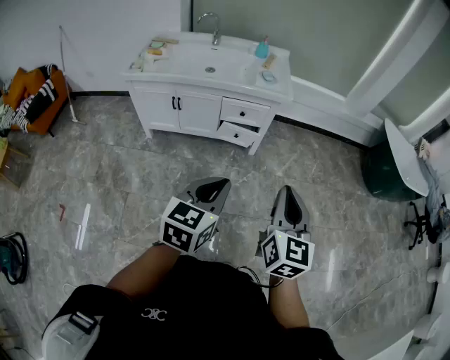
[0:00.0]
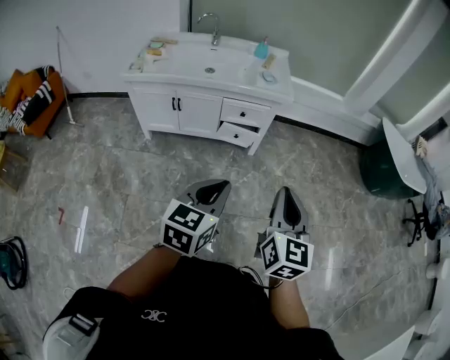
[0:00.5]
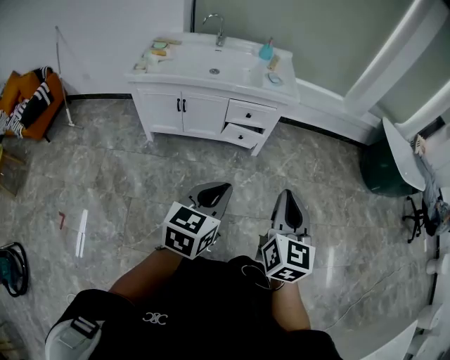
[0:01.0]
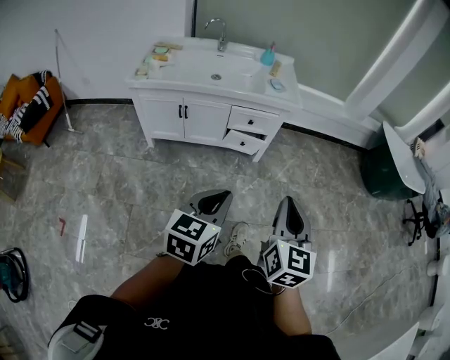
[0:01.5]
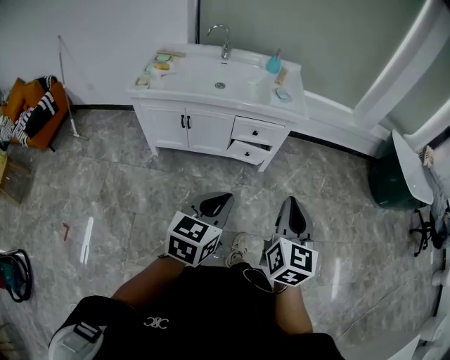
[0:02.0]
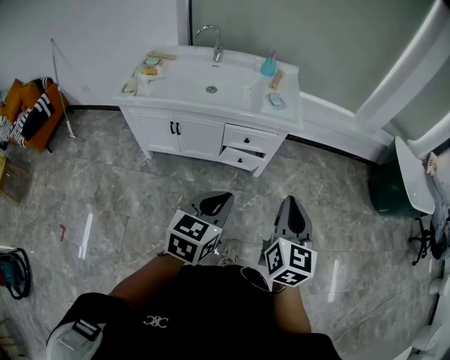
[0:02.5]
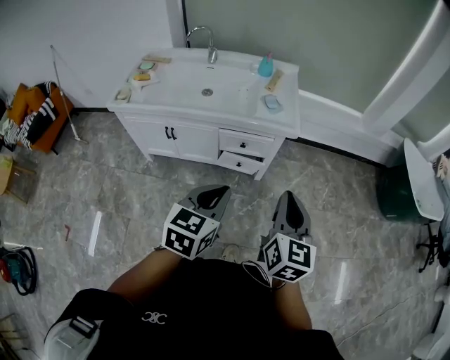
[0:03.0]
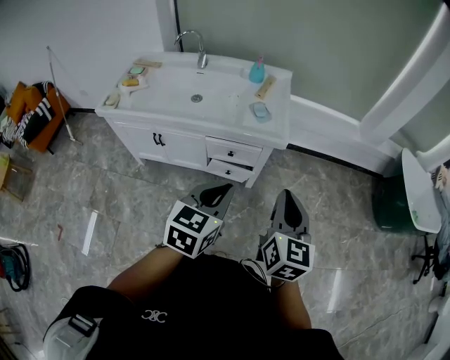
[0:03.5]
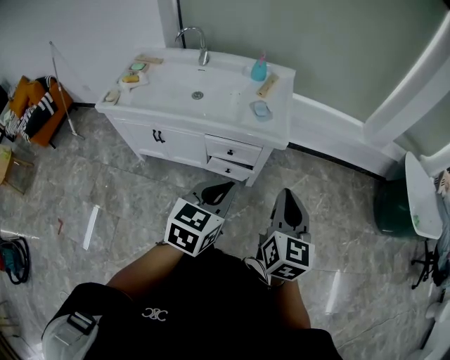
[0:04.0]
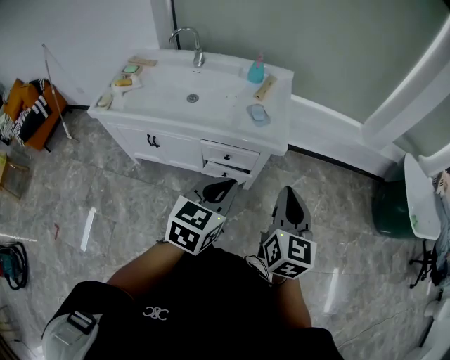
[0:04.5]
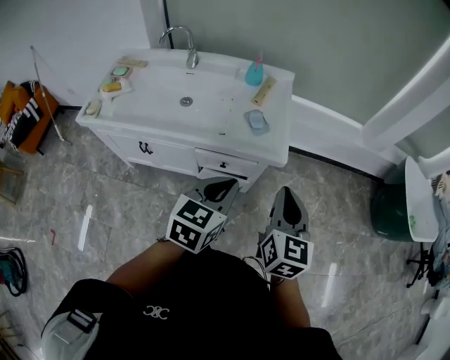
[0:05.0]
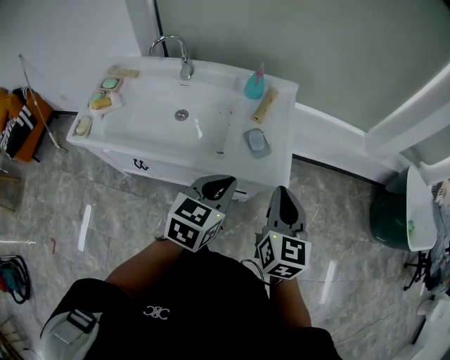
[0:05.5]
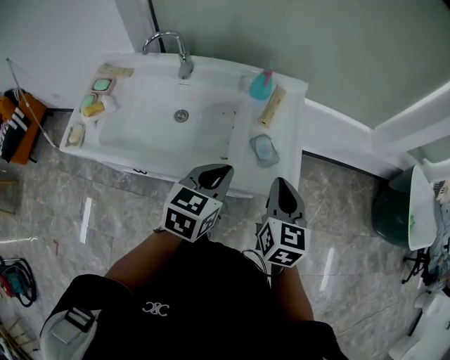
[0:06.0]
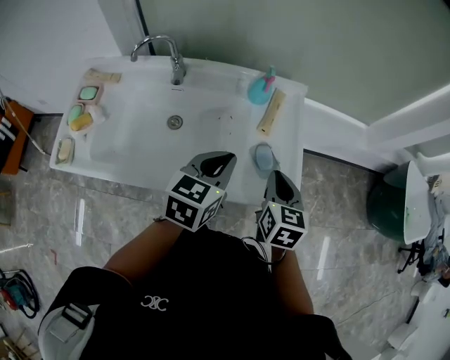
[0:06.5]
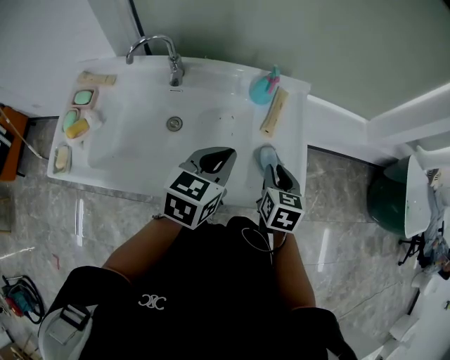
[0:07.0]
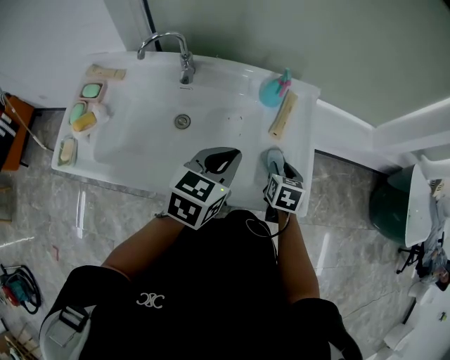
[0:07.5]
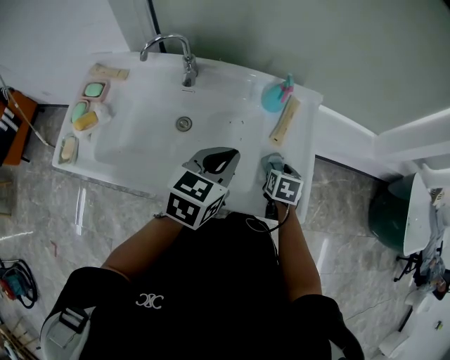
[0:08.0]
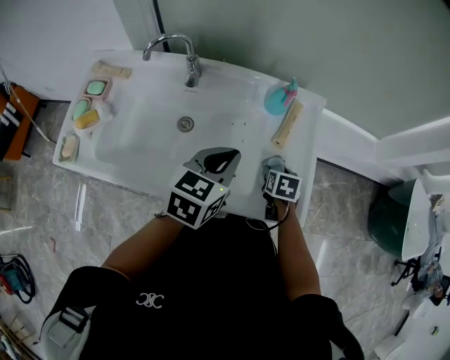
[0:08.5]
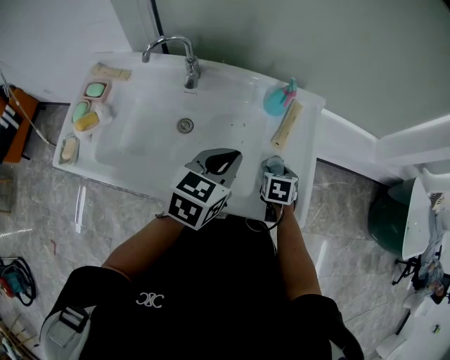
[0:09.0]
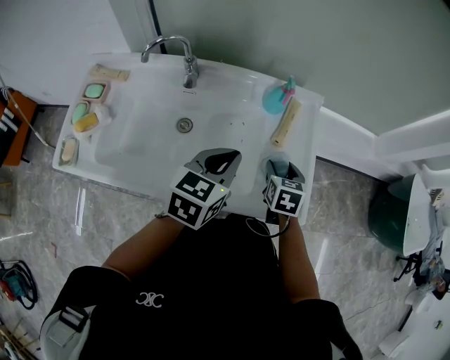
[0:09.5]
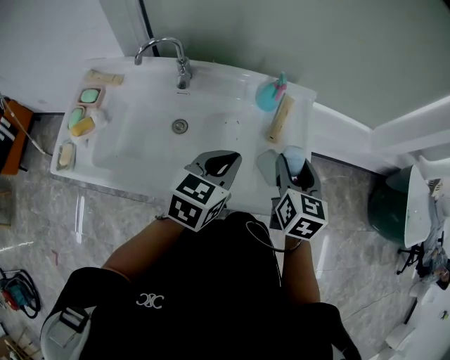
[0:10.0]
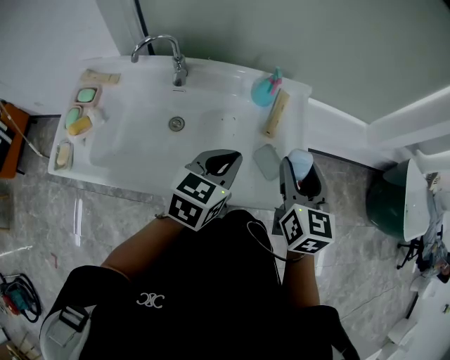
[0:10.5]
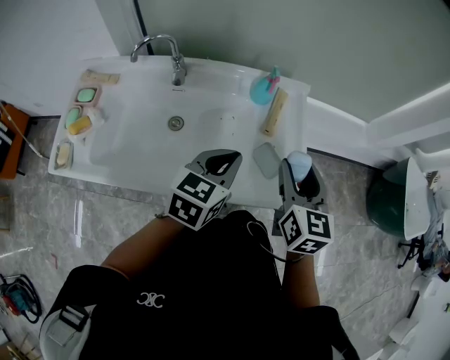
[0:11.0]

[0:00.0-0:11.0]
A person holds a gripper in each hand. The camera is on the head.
0:00.0 to 0:02.0: The right gripper moves to the left and forward, some 10 cm. Meanwhile the left gripper heads to the left, covering roughly 10 cm.
0:02.0 to 0:03.5: The right gripper moves forward, roughly 25 cm. Meanwhile the left gripper moves forward and to the right, approximately 30 cm.
0:03.5 to 0:05.5: The grippers both shift forward by about 25 cm.
0:05.5 to 0:07.5: The left gripper heads forward and to the left, covering approximately 20 cm; the right gripper travels forward, downward and to the left by roughly 30 cm, angles its fingers downward, by some 30 degrees, and opens its fingers.
0:07.5 to 0:09.0: The right gripper opens.
0:09.0 to 0:11.0: The right gripper goes roughly 25 cm upward, and tips its fingers upward by some 40 degrees.

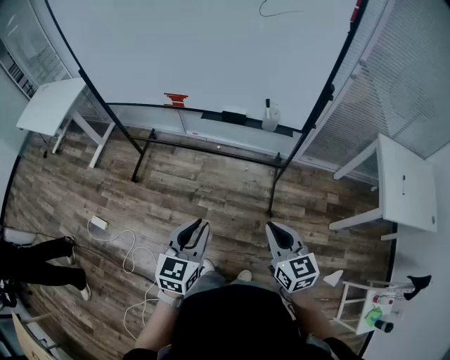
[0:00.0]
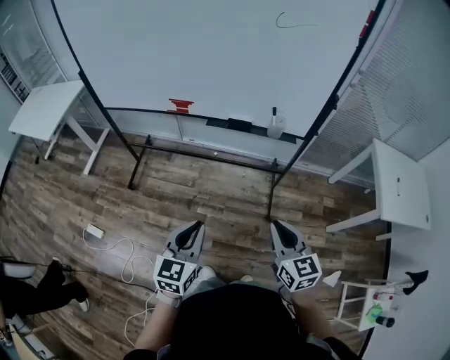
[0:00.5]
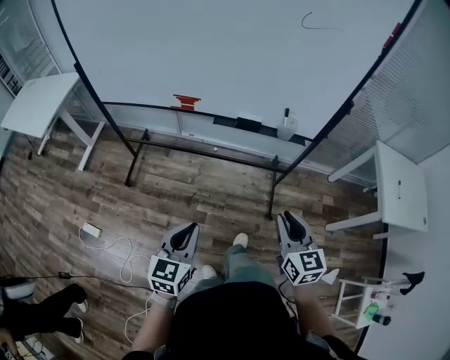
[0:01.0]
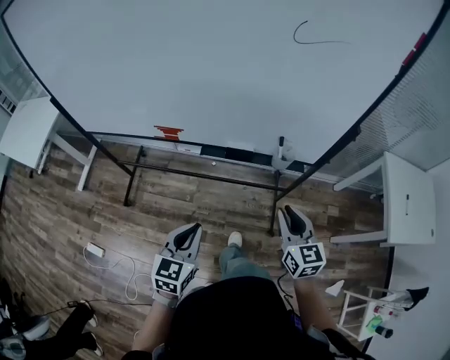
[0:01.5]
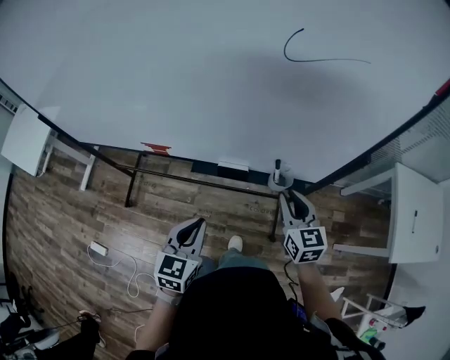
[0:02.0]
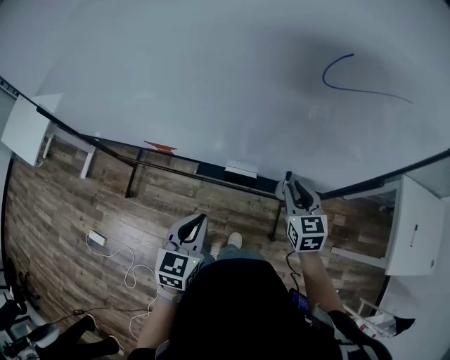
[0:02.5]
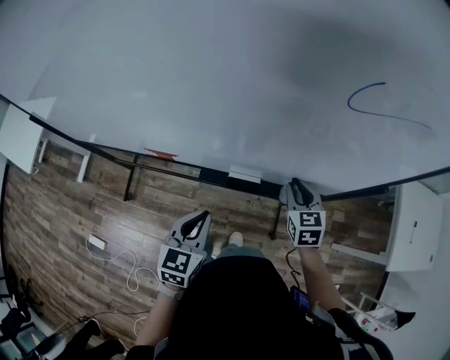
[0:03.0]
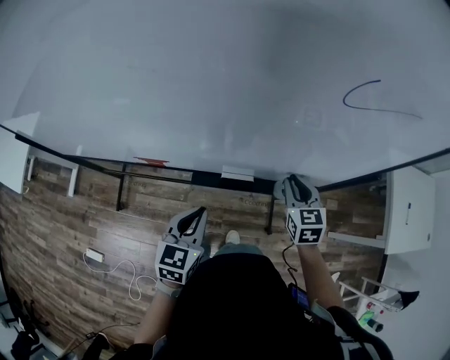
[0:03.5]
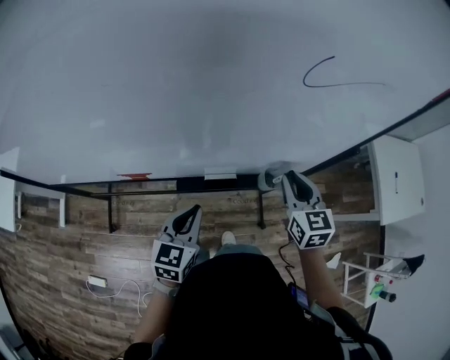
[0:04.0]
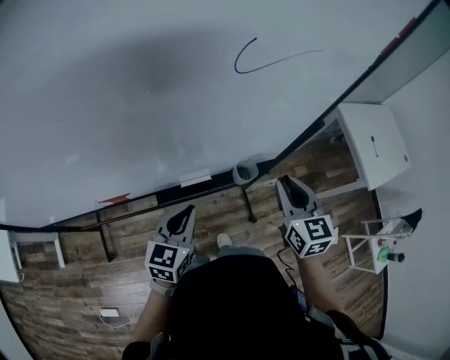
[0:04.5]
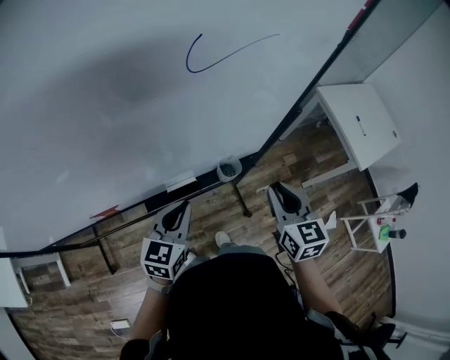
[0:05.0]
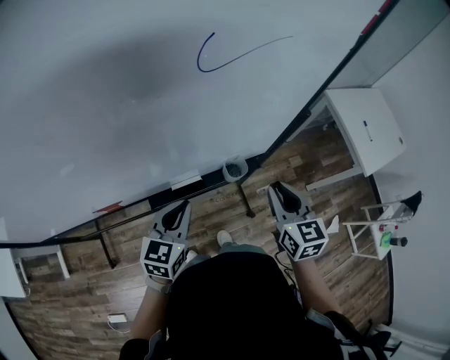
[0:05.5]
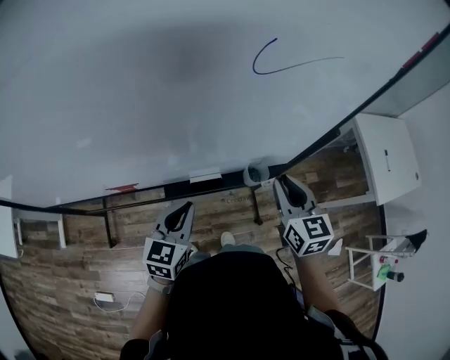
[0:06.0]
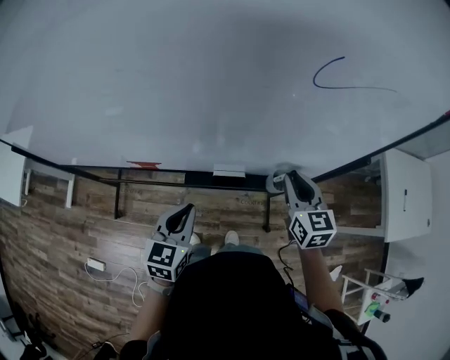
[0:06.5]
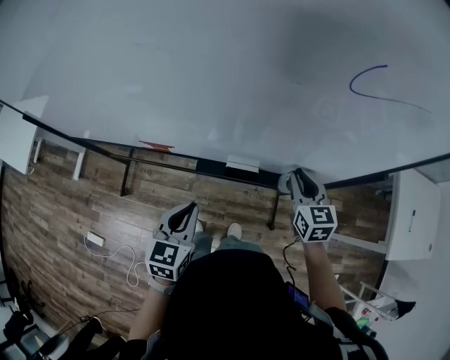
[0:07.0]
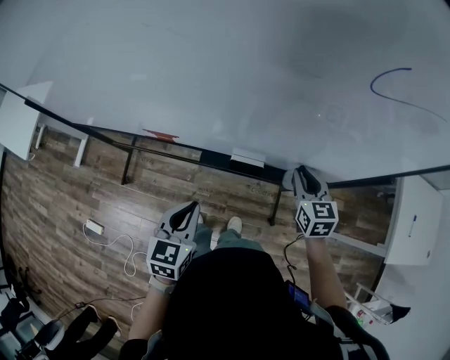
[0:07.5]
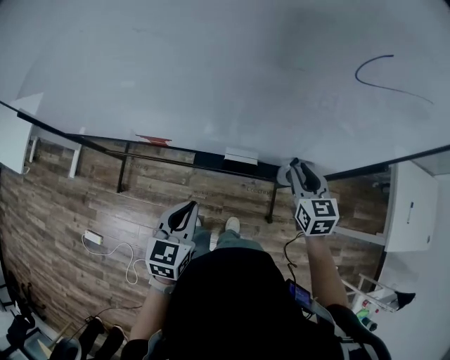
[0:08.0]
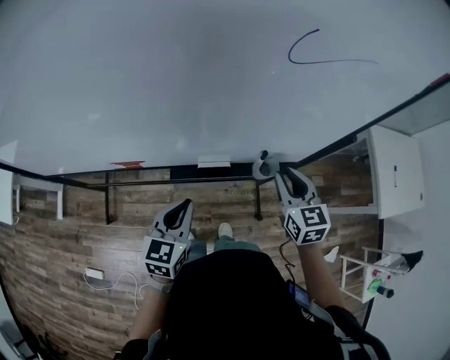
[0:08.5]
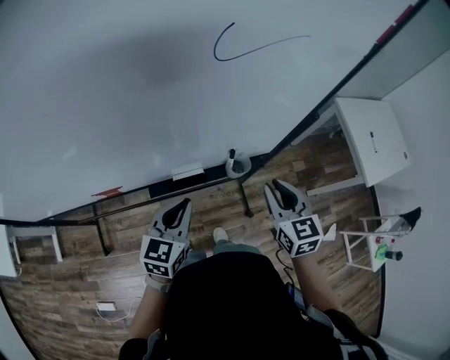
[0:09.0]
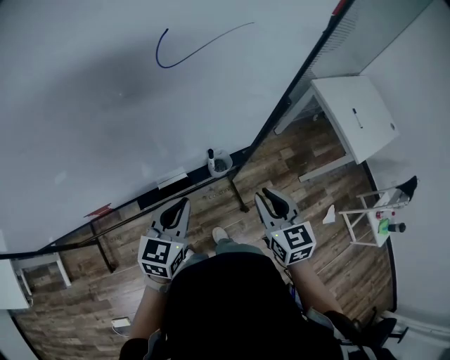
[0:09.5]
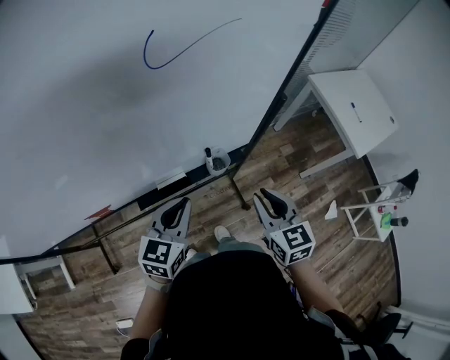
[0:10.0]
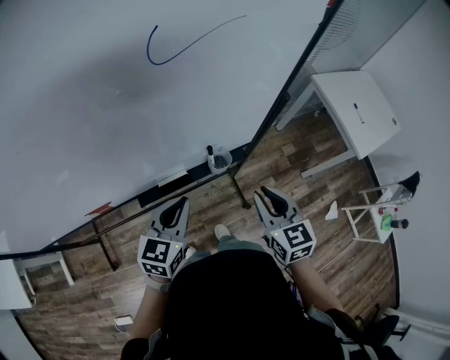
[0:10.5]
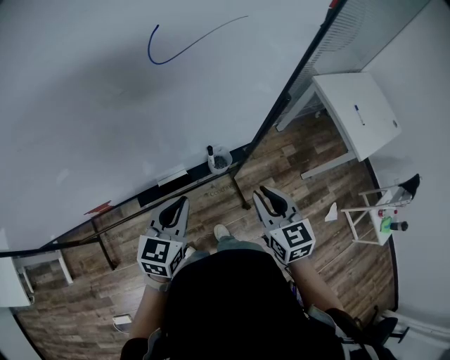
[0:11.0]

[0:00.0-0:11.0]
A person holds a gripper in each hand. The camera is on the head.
0:00.0 to 0:02.0: The grippers both shift forward by approximately 35 cm.
0:02.0 to 0:03.5: The grippers both shift forward by roughly 10 cm.
0:03.5 to 0:05.5: The left gripper is displaced to the right and forward by approximately 10 cm, and rotates roughly 30 degrees, while the right gripper is displaced backward, to the right and upward by some 15 cm, and rotates approximately 20 degrees.
0:05.5 to 0:07.5: The right gripper shifts by roughly 20 cm, and changes its angle by about 30 degrees. The left gripper shifts by roughly 15 cm, and rotates approximately 30 degrees.
0:07.5 to 0:09.0: The left gripper heads to the right and forward, covering about 10 cm, and changes its angle by about 30 degrees, while the right gripper travels backward, upward and to the right by roughly 15 cm, and turns by about 20 degrees.
0:09.0 to 0:11.0: The grippers make only small movements.

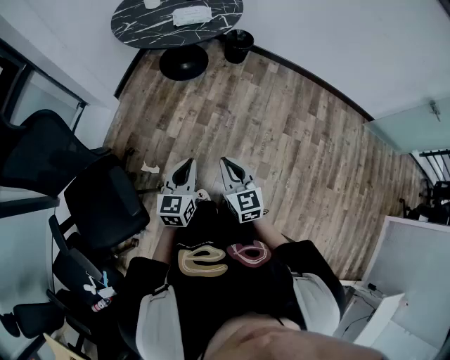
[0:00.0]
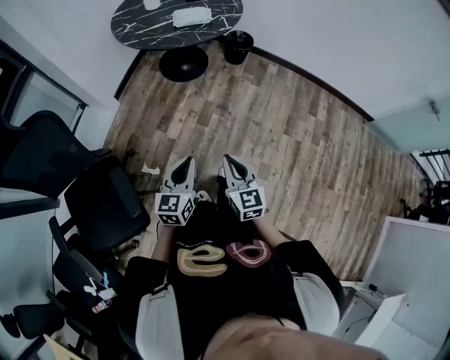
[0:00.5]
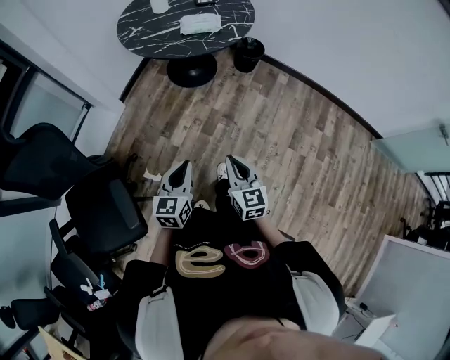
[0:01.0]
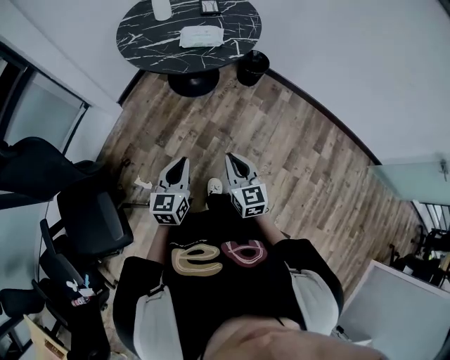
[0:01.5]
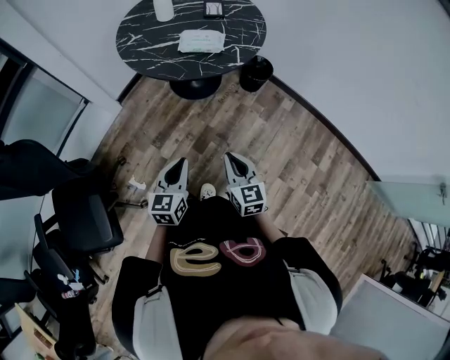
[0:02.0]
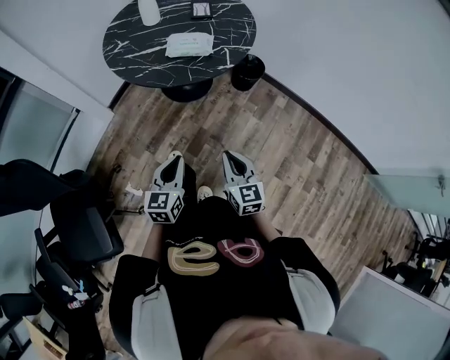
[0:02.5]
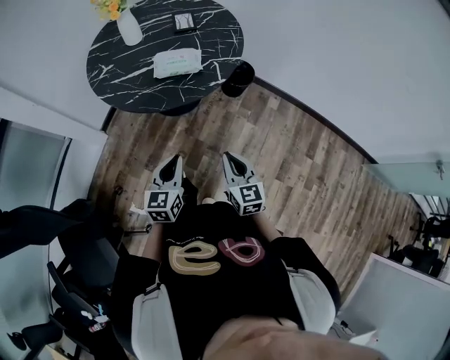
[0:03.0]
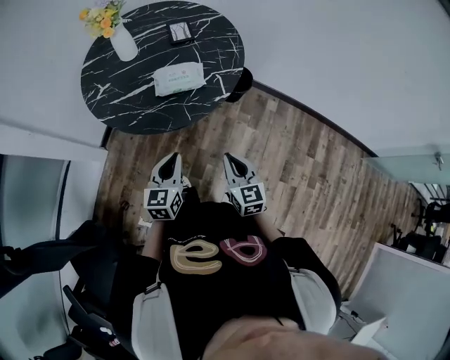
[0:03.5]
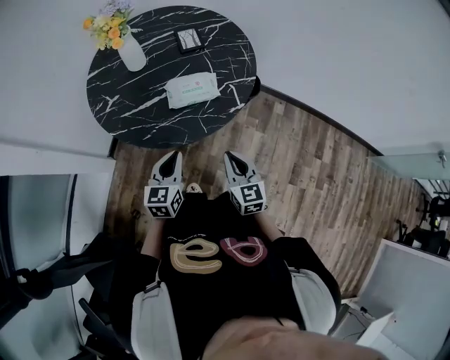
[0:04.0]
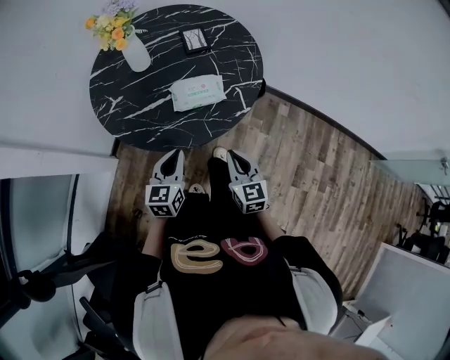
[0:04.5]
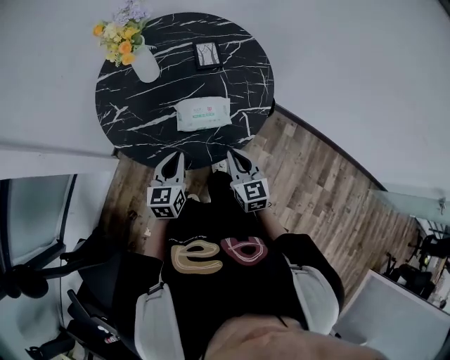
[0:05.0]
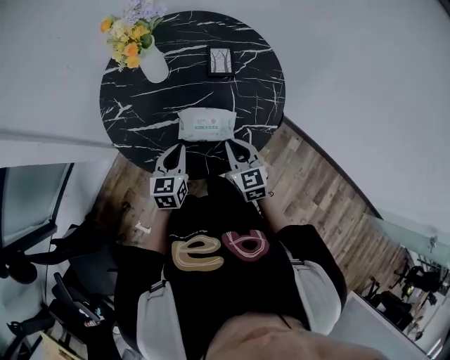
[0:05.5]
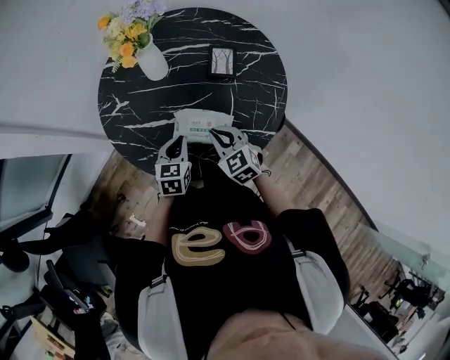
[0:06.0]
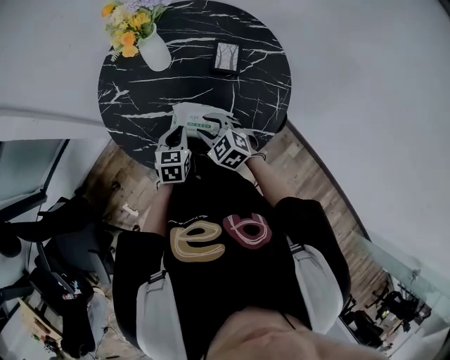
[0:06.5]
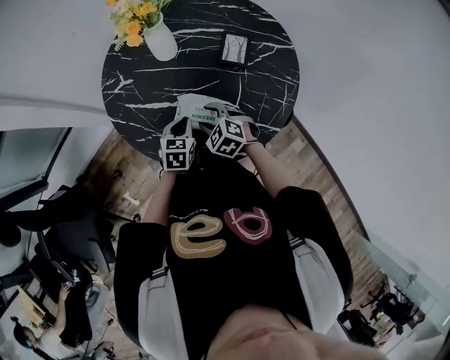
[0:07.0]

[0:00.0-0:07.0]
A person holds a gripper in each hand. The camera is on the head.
0:00.0 to 0:02.0: The left gripper moves forward, about 25 cm, while the right gripper goes roughly 30 cm forward and to the right.
0:02.0 to 0:03.5: The two grippers go some 20 cm forward.
0:03.5 to 0:05.0: Both grippers move forward, roughly 20 cm.
0:05.0 to 0:07.0: The right gripper moves approximately 20 cm, swivels approximately 70 degrees, and opens its fingers; the left gripper ends up some 15 cm from where it was, and turns by approximately 30 degrees.
